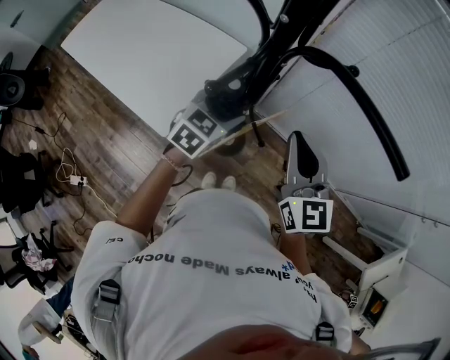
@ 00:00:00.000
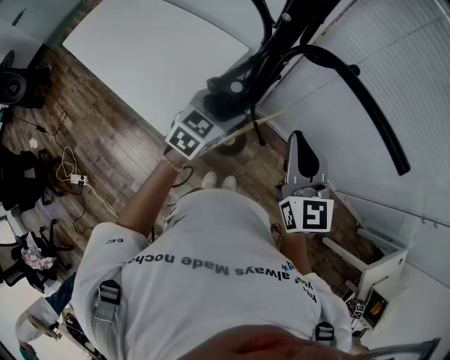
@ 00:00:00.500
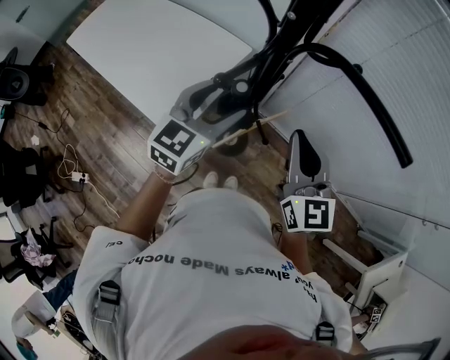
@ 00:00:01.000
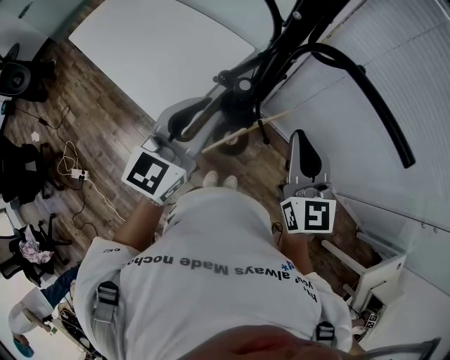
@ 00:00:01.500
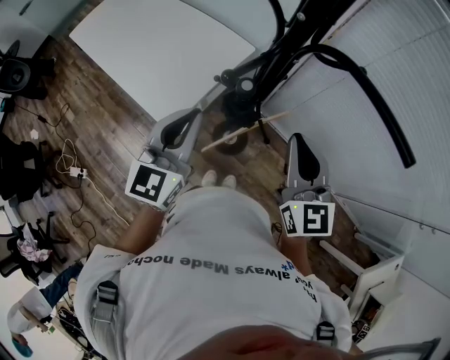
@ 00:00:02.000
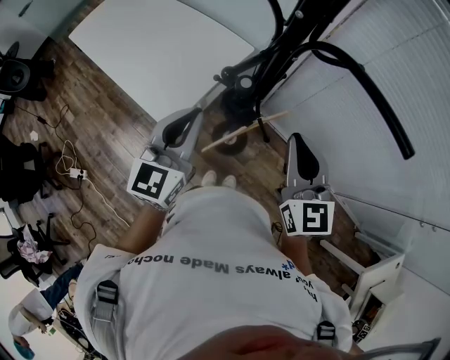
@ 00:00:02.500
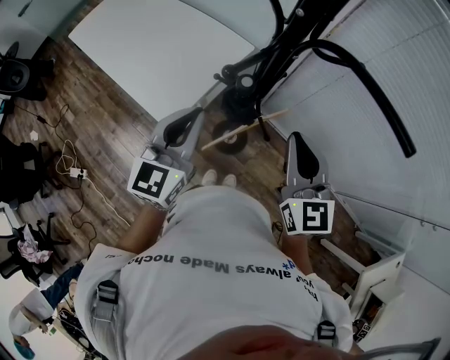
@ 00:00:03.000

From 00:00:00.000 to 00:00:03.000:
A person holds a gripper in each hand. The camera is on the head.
From 00:00:00.000 to 00:00:01.500: The left gripper moves upward and backward, about 15 cm, rotates approximately 30 degrees, and closes its fingers.
From 00:00:01.500 to 00:00:03.000: The grippers move only a little.

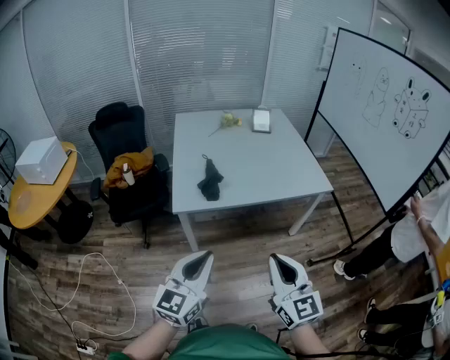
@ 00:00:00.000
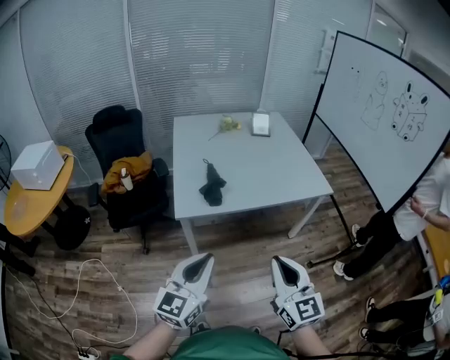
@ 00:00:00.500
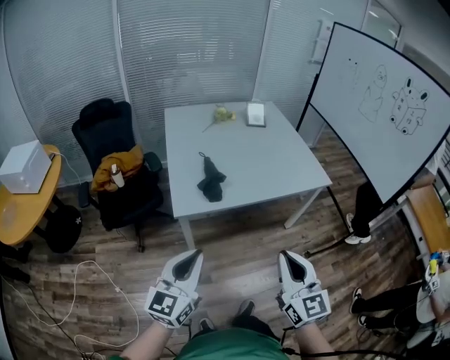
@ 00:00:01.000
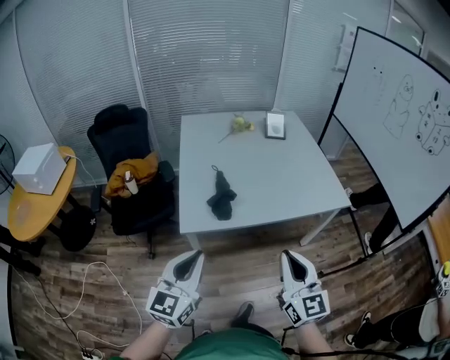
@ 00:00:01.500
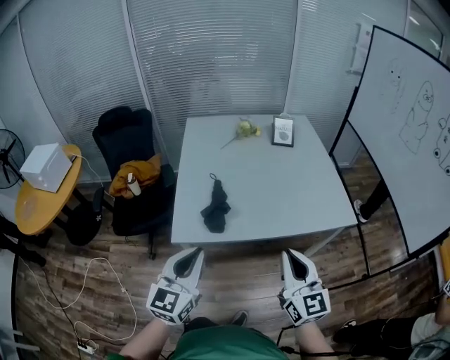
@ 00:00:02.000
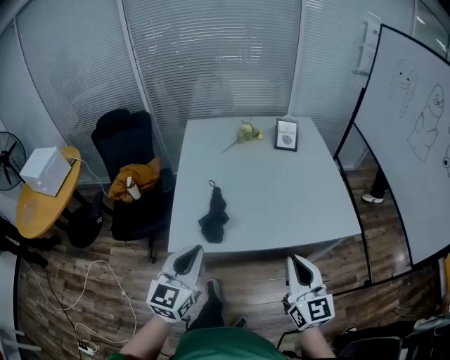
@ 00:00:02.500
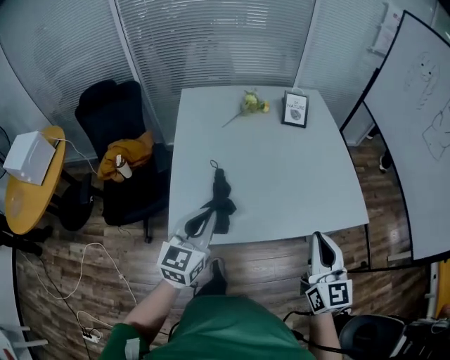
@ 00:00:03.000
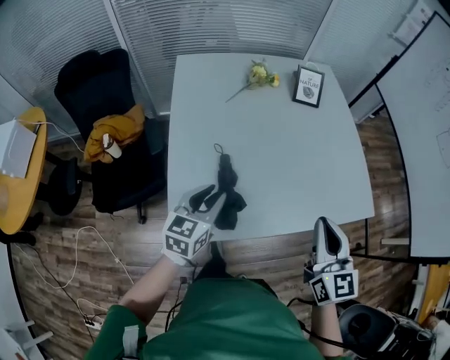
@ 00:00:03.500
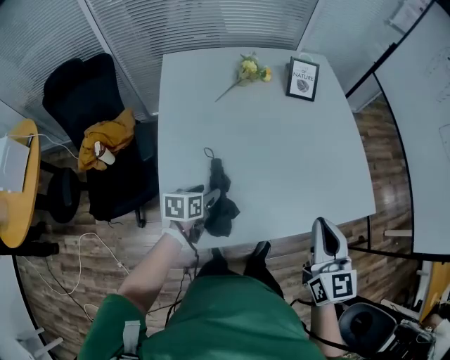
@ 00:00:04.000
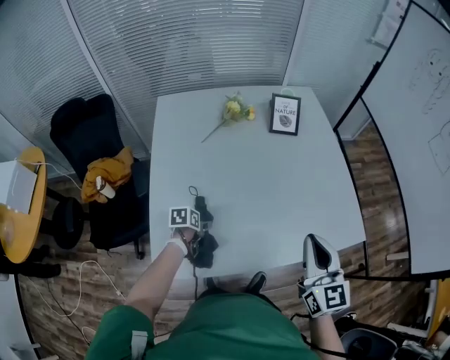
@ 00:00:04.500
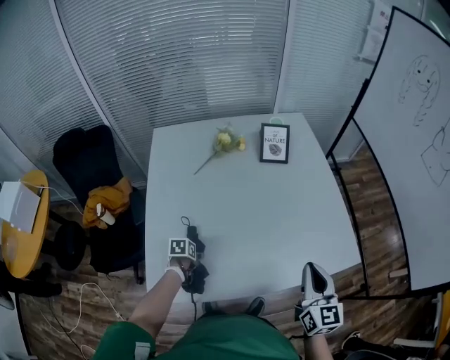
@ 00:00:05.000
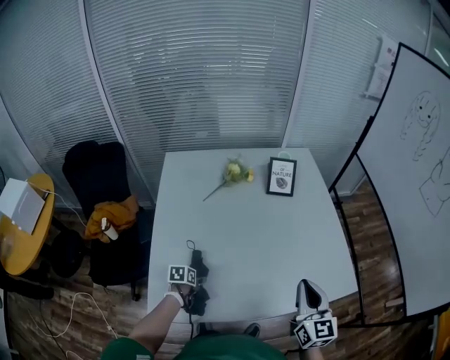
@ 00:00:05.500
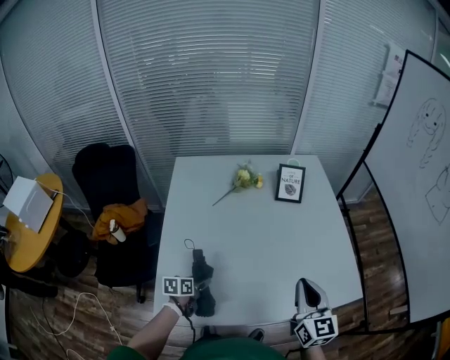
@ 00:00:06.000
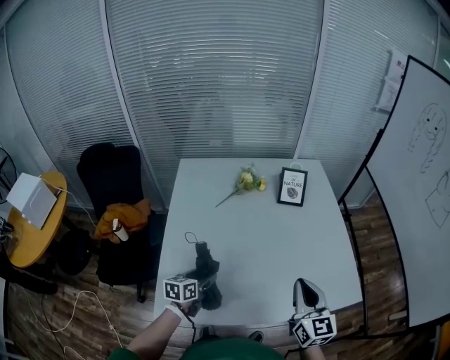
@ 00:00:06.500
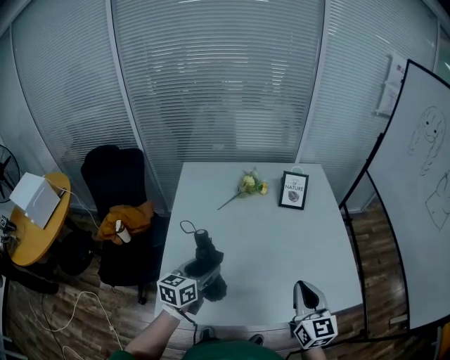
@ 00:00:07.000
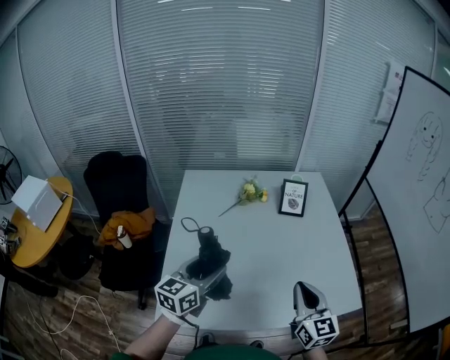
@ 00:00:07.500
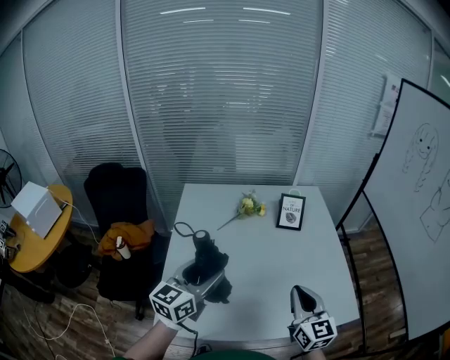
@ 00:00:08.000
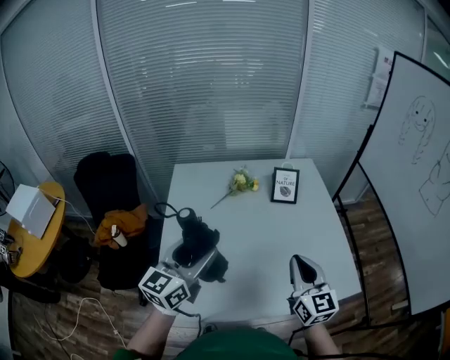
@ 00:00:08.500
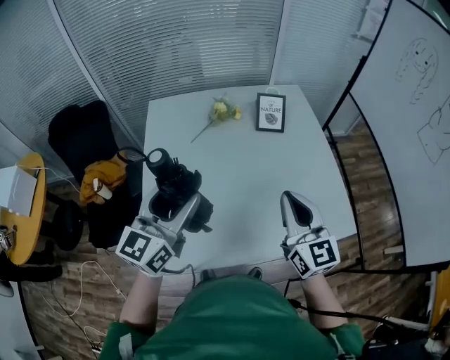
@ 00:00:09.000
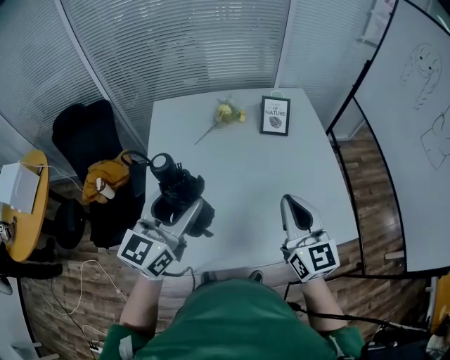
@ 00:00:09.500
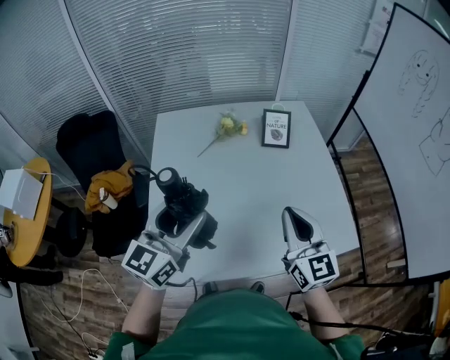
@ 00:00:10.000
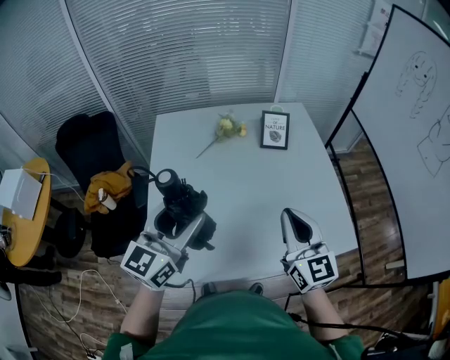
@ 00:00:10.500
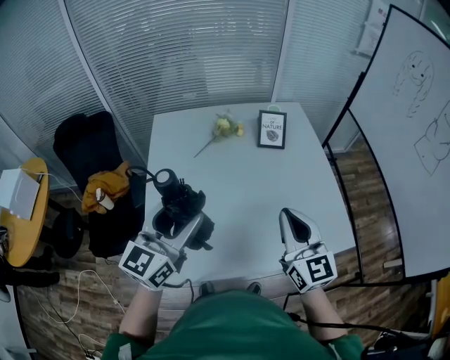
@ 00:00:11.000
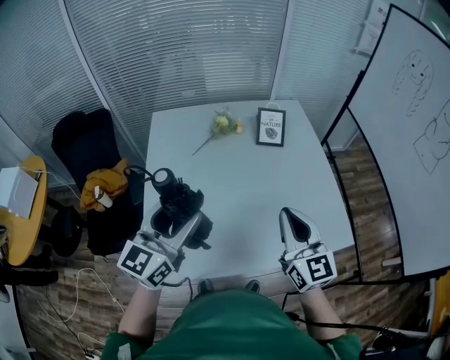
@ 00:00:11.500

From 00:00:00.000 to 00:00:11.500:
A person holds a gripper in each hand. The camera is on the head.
From 00:00:00.000 to 00:00:02.000: The grippers both shift forward by some 25 cm.
From 00:00:02.000 to 00:00:04.000: The right gripper moves forward, approximately 25 cm. The left gripper goes roughly 50 cm forward and downward, tips its fingers downward by about 40 degrees, and opens up.
From 00:00:04.000 to 00:00:06.000: The right gripper moves forward and to the right, roughly 10 cm. Meanwhile the left gripper travels downward and back again, about 10 cm each way.
From 00:00:06.000 to 00:00:07.500: The left gripper heads upward, covering some 30 cm, and points its fingers about 30 degrees further upward.
From 00:00:07.500 to 00:00:09.500: The right gripper shifts by approximately 5 cm. The left gripper goes roughly 5 cm upward.
From 00:00:09.500 to 00:00:11.500: The grippers stay close to where they were, moving slightly.

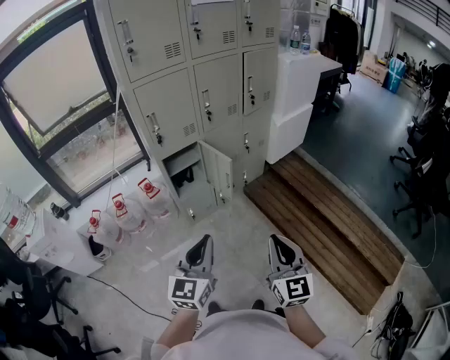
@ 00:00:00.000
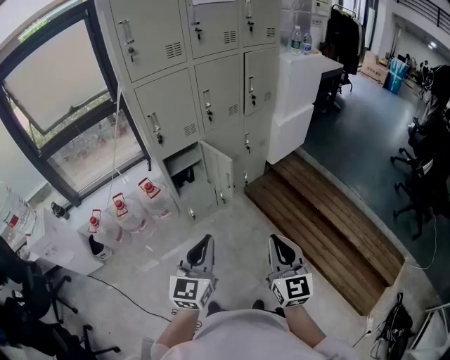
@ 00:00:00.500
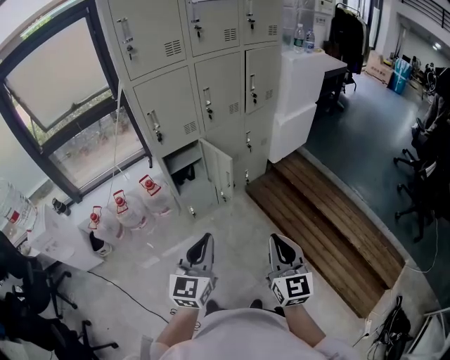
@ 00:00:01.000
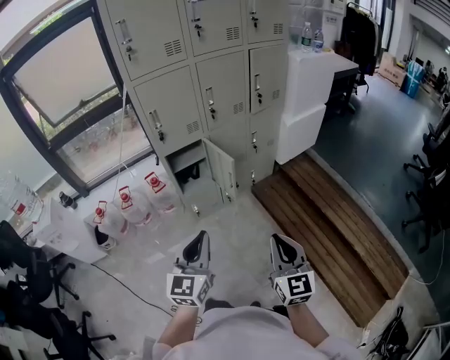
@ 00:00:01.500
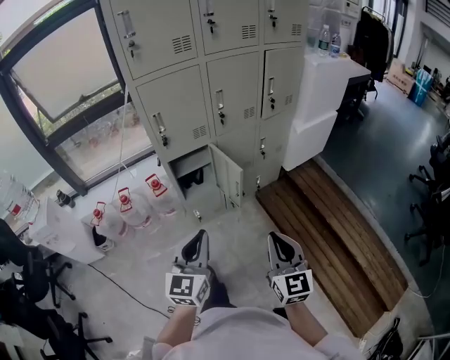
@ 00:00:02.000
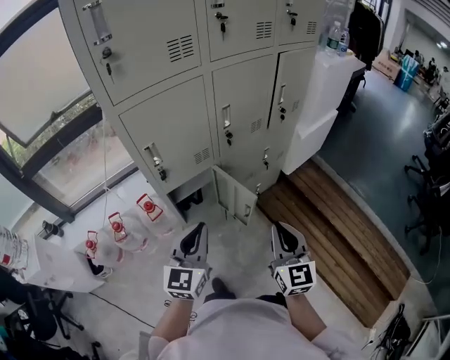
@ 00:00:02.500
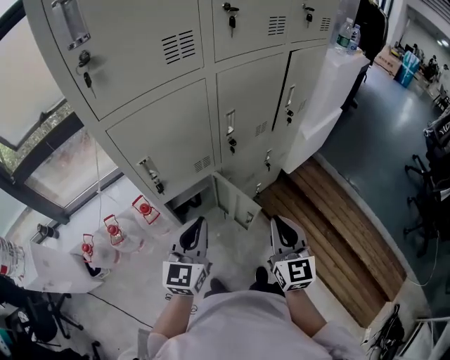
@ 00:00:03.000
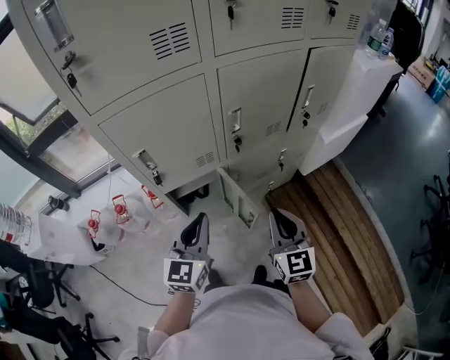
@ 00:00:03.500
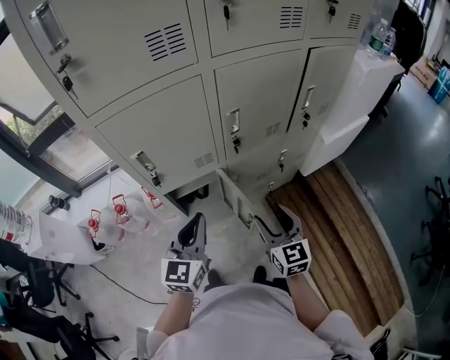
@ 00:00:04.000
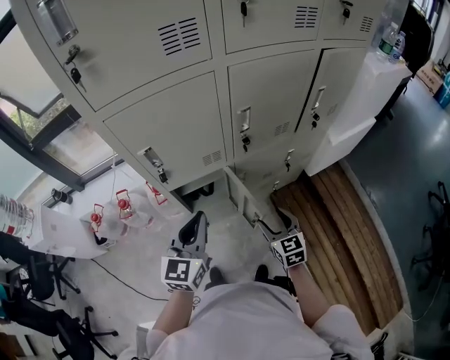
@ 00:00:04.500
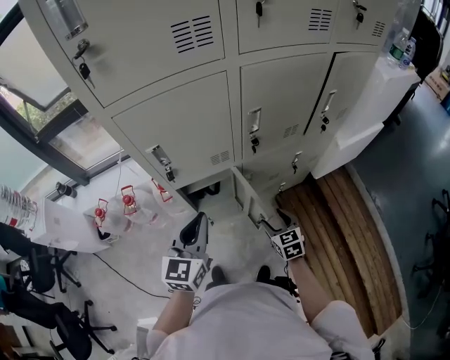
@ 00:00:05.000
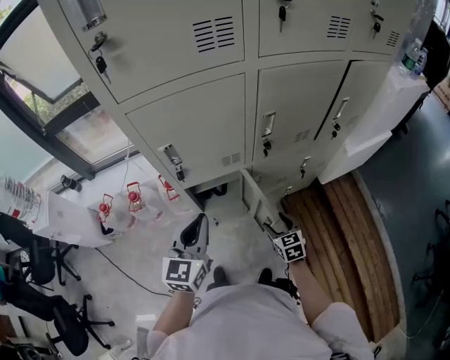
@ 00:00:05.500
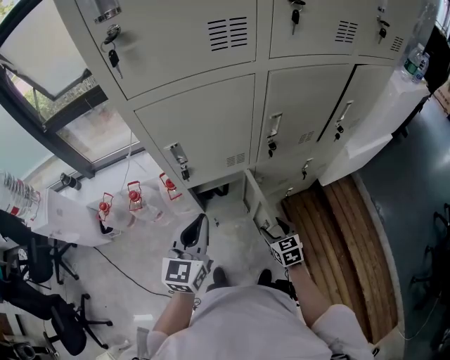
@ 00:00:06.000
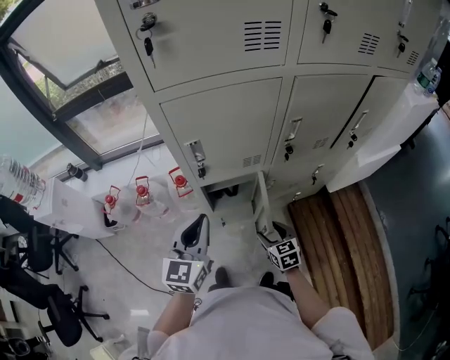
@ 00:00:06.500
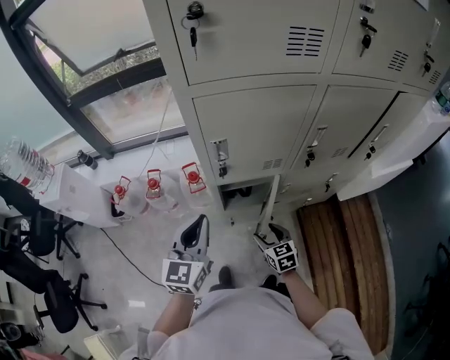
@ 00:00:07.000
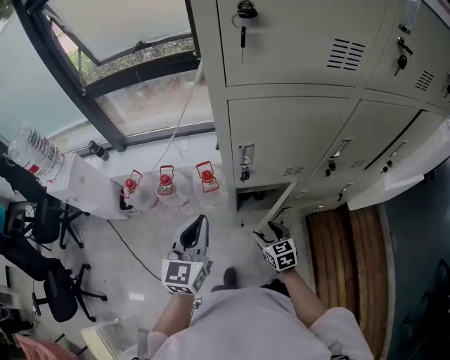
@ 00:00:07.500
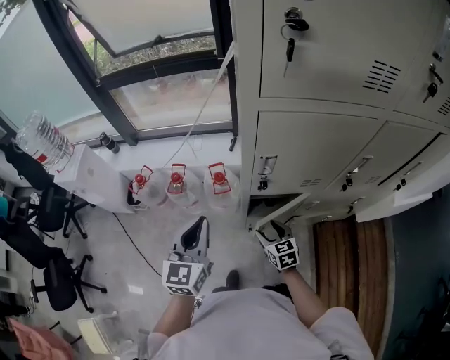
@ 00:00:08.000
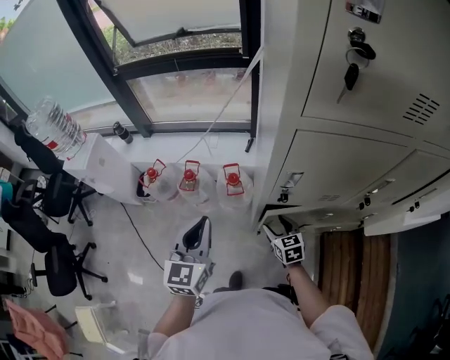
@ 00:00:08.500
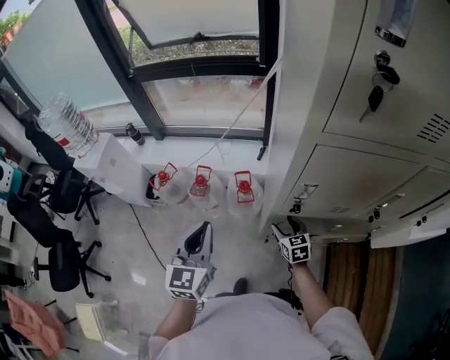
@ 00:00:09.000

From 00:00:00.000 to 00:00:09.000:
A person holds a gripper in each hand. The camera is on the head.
From 00:00:00.000 to 00:00:02.000: The two grippers go some 10 cm forward.
From 00:00:02.000 to 00:00:04.500: The right gripper moves forward and downward, roughly 40 cm, changes its angle by about 30 degrees, and opens up. Meanwhile the left gripper moves forward, about 35 cm.
From 00:00:04.500 to 00:00:07.000: The left gripper moves to the left, about 15 cm. The right gripper shifts some 20 cm to the left and downward.
From 00:00:07.000 to 00:00:09.000: The right gripper moves forward and to the left, approximately 20 cm, while the left gripper is displaced to the left and forward by approximately 20 cm.

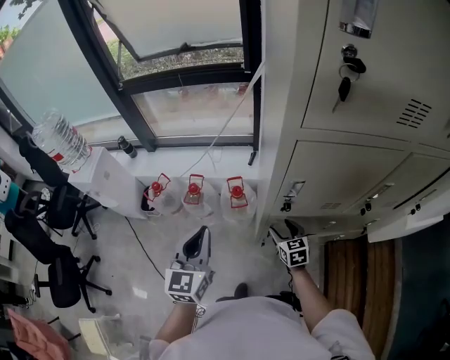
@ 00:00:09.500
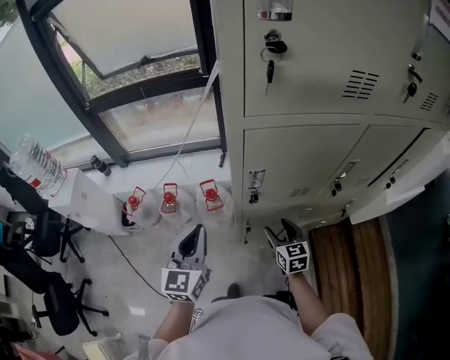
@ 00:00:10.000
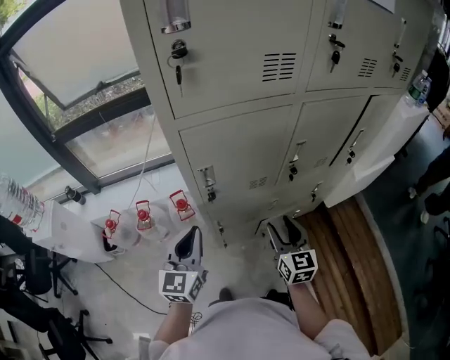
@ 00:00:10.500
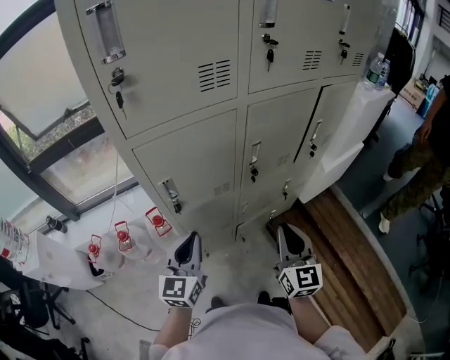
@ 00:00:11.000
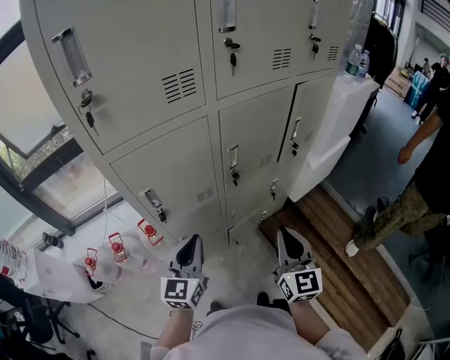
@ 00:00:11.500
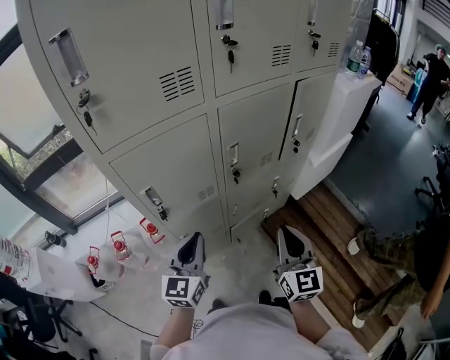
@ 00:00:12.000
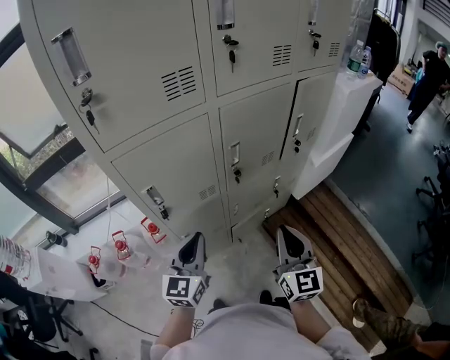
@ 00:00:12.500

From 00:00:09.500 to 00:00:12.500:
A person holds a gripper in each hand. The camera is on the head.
From 00:00:09.500 to 00:00:11.000: The left gripper changes place by approximately 25 cm, and swivels approximately 30 degrees, while the right gripper changes place by approximately 40 cm, angles its fingers upward, by about 30 degrees, and closes up.
From 00:00:11.000 to 00:00:12.500: The left gripper goes some 5 cm to the right.
